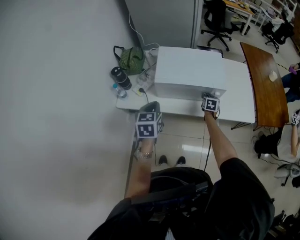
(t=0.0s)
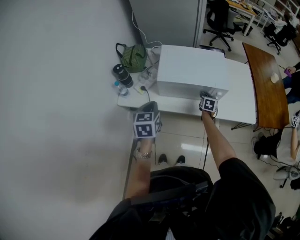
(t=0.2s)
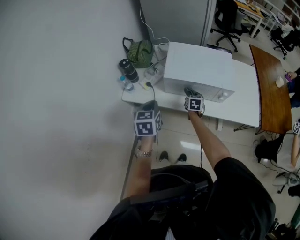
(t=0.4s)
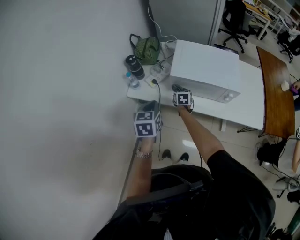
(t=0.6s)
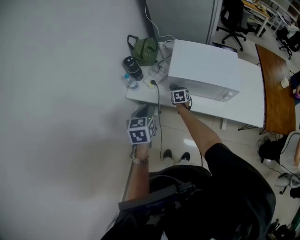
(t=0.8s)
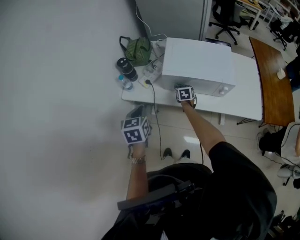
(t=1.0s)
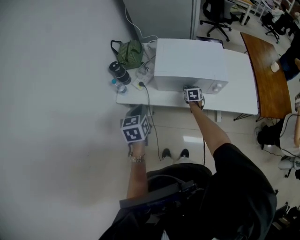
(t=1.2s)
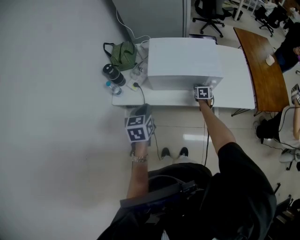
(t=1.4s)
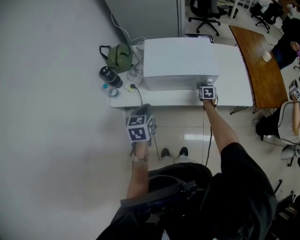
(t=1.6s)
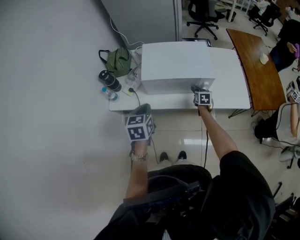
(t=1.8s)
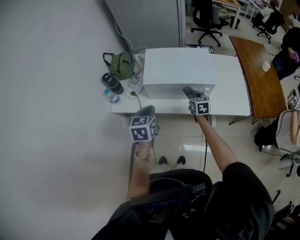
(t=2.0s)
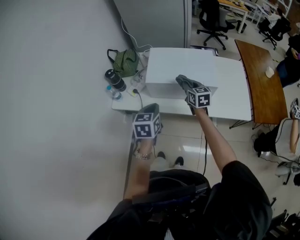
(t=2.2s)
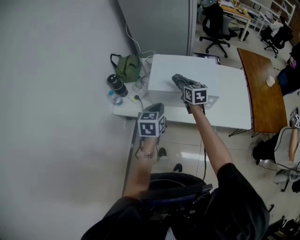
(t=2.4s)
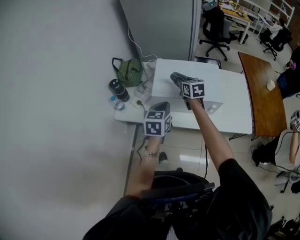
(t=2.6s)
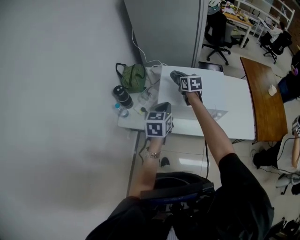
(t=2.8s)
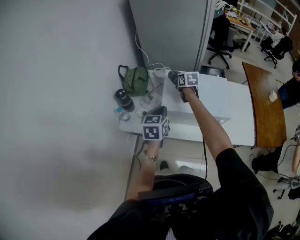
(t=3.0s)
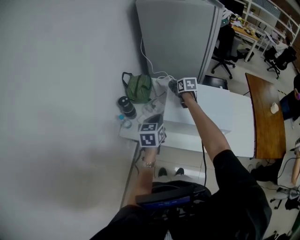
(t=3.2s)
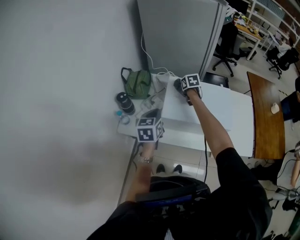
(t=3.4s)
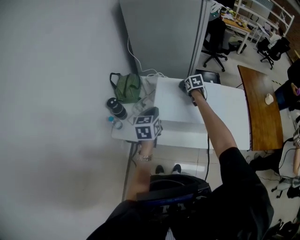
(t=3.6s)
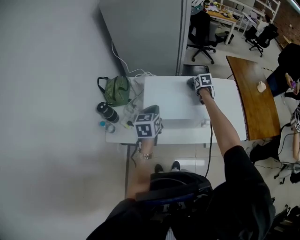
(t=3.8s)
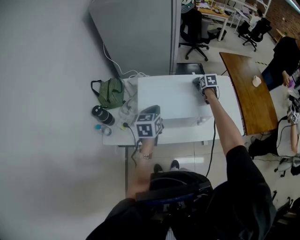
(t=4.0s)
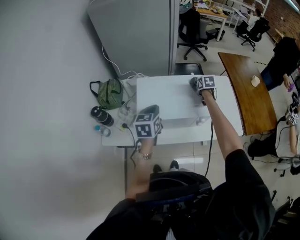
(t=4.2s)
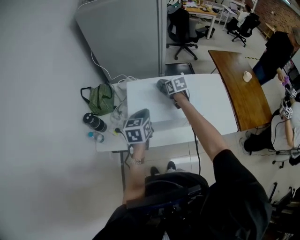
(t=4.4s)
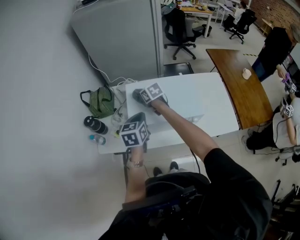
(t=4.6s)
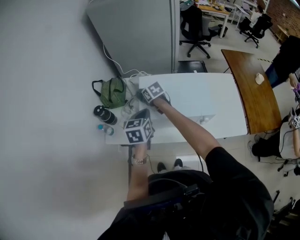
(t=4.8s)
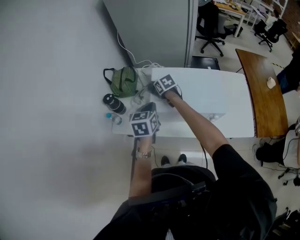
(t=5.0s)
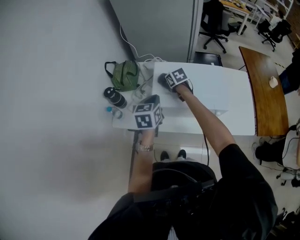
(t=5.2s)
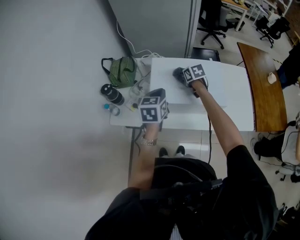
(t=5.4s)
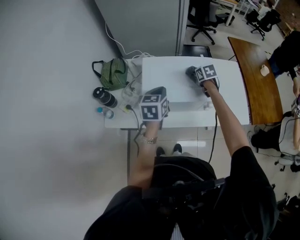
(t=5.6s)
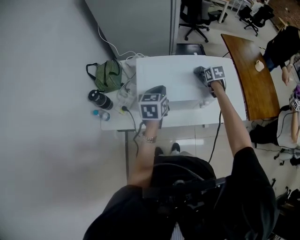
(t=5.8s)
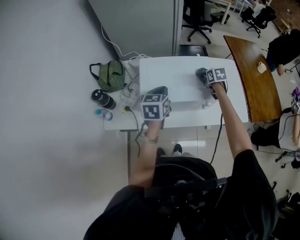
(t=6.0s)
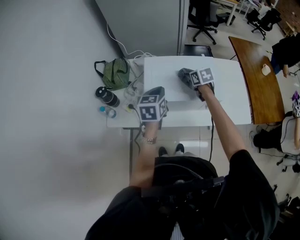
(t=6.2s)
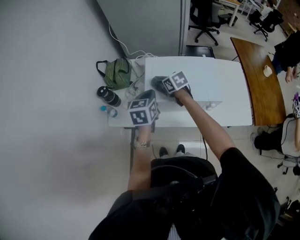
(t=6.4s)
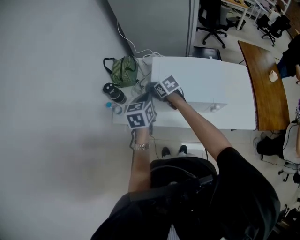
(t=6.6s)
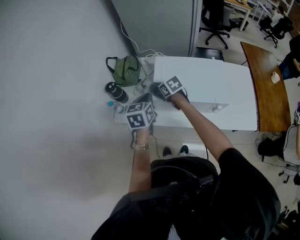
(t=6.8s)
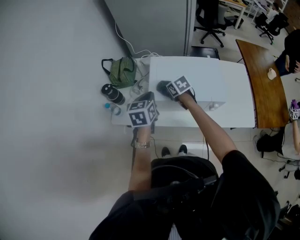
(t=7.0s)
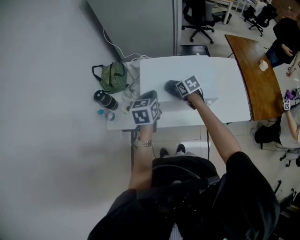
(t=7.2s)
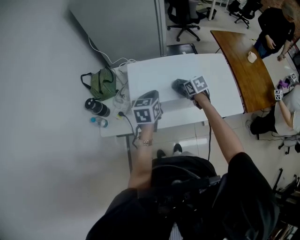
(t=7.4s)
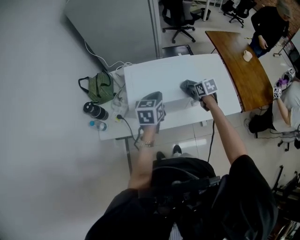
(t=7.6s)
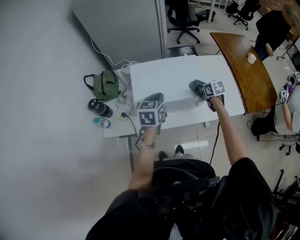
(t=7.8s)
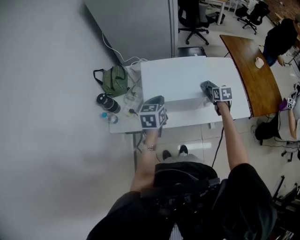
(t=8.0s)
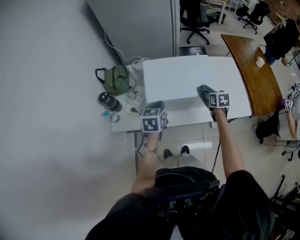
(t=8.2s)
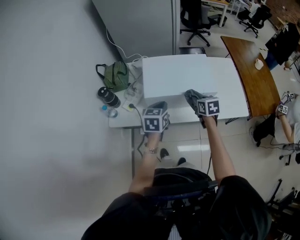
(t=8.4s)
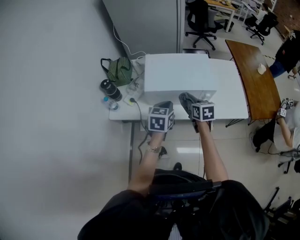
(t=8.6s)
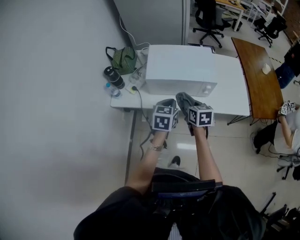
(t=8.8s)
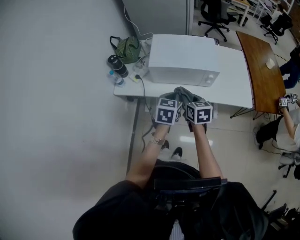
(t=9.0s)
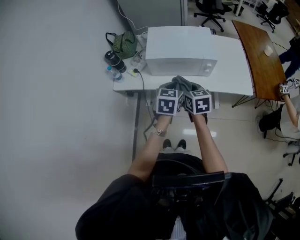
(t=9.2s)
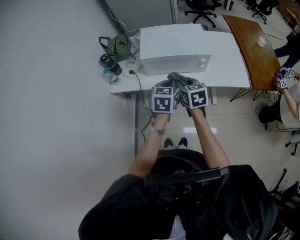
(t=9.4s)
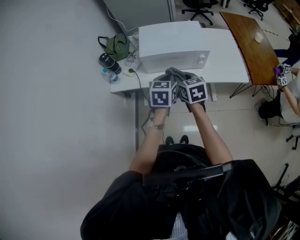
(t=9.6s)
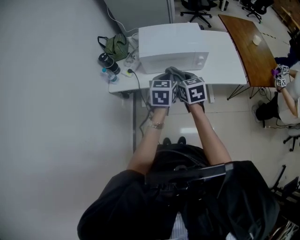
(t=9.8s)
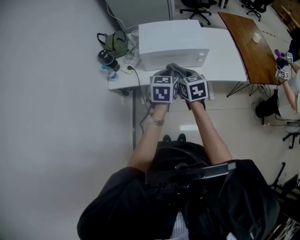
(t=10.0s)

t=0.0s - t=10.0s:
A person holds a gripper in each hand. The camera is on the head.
t=0.0s - t=1.4s: The left gripper travels to the left and back again, roughly 10 cm each way; the right gripper moves some 30 cm to the left and comes back.
t=1.4s - t=2.8s: The right gripper heads upward, to the left and forward, covering approximately 35 cm, and turns by approximately 30 degrees, while the left gripper moves forward, to the right and upward, approximately 15 cm.
t=2.8s - t=4.2s: The right gripper moves to the right, roughly 30 cm, and swivels roughly 30 degrees. The left gripper shifts about 10 cm forward and to the right.
t=5.8s - t=7.2s: The right gripper turns by some 20 degrees.
t=7.2s - t=8.6s: The right gripper heads backward, covering approximately 15 cm, reaches approximately 20 cm to the right, then returns, and swivels approximately 20 degrees; the left gripper shifts roughly 15 cm backward and to the right.
t=8.6s - t=10.0s: The left gripper goes roughly 10 cm backward. Meanwhile the right gripper is displaced backward, upward and to the left by some 15 cm.

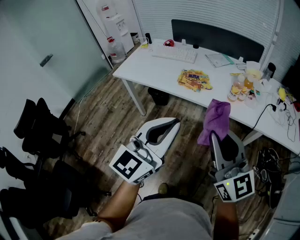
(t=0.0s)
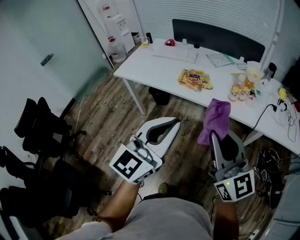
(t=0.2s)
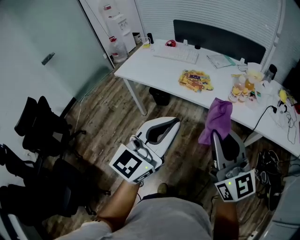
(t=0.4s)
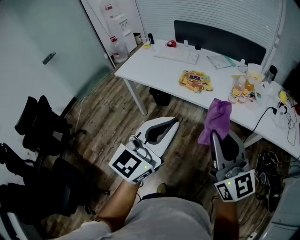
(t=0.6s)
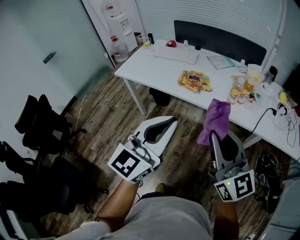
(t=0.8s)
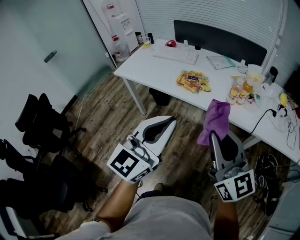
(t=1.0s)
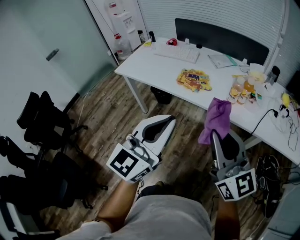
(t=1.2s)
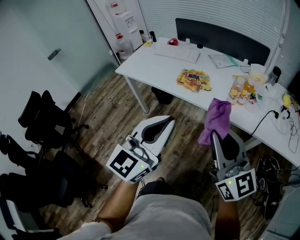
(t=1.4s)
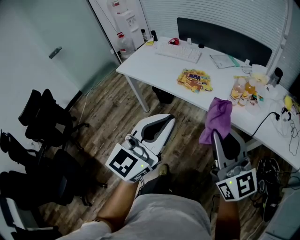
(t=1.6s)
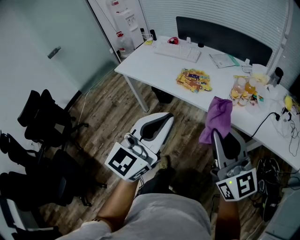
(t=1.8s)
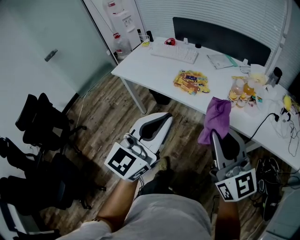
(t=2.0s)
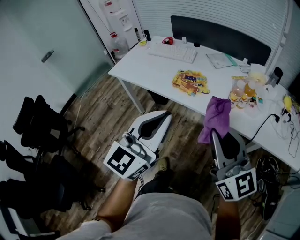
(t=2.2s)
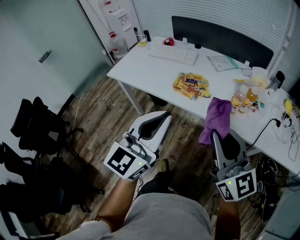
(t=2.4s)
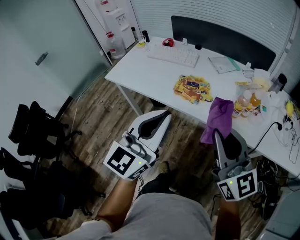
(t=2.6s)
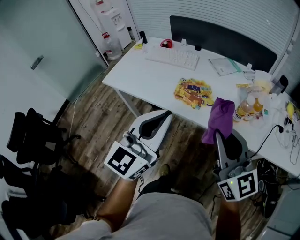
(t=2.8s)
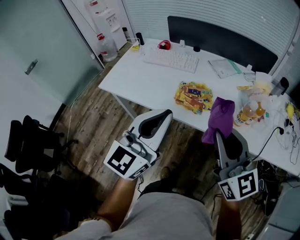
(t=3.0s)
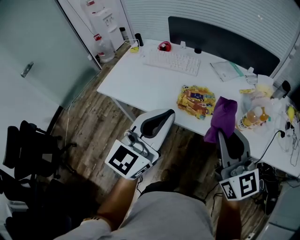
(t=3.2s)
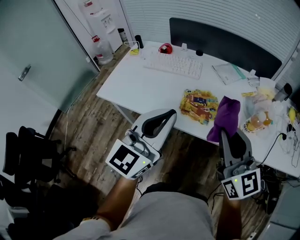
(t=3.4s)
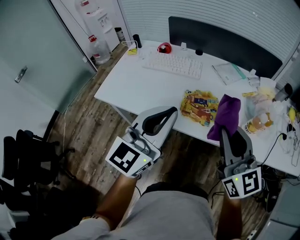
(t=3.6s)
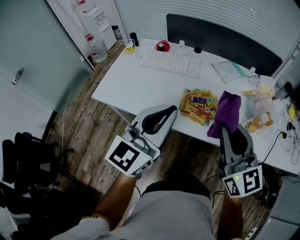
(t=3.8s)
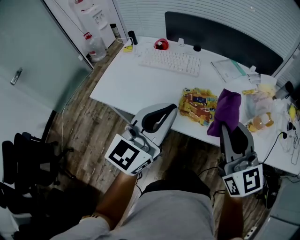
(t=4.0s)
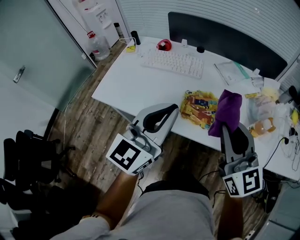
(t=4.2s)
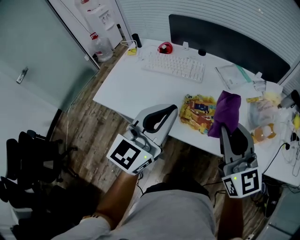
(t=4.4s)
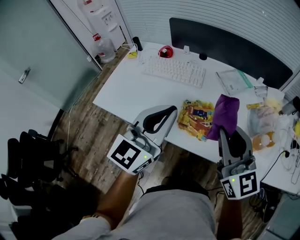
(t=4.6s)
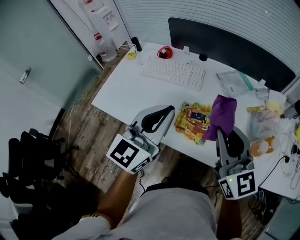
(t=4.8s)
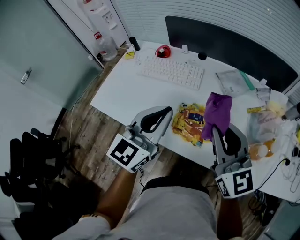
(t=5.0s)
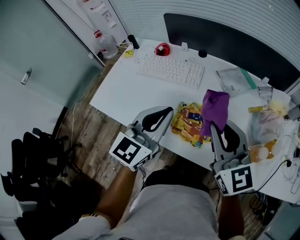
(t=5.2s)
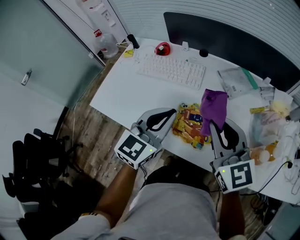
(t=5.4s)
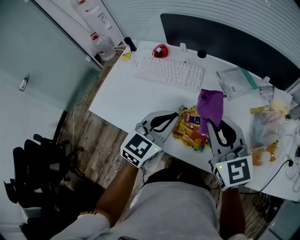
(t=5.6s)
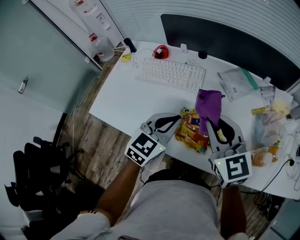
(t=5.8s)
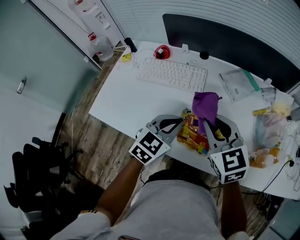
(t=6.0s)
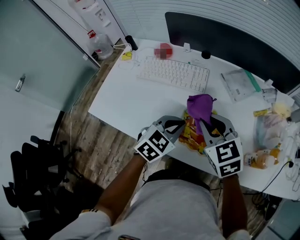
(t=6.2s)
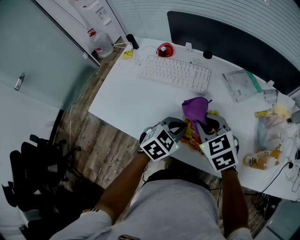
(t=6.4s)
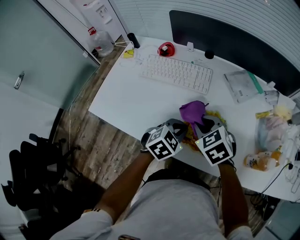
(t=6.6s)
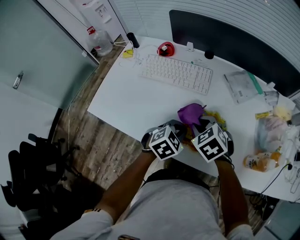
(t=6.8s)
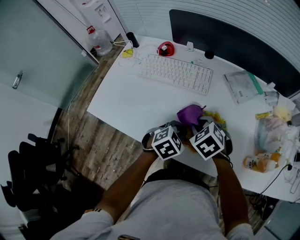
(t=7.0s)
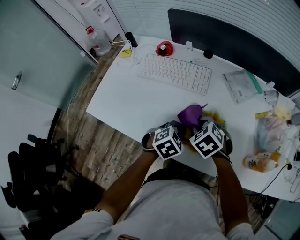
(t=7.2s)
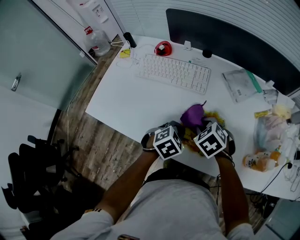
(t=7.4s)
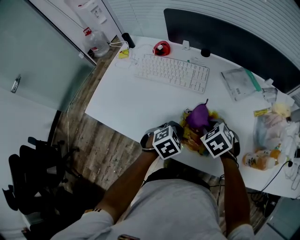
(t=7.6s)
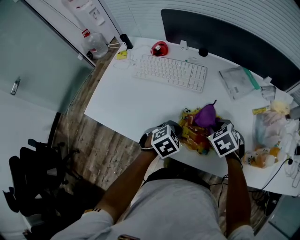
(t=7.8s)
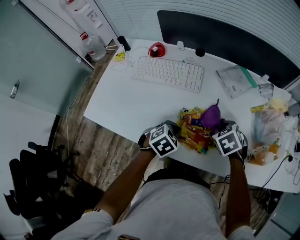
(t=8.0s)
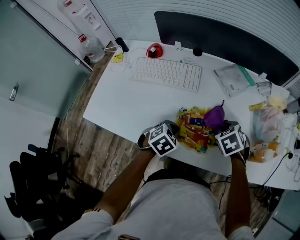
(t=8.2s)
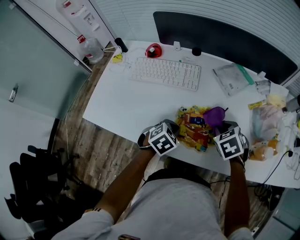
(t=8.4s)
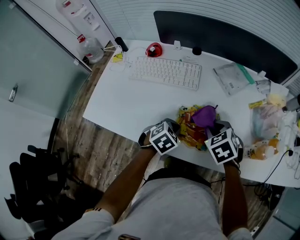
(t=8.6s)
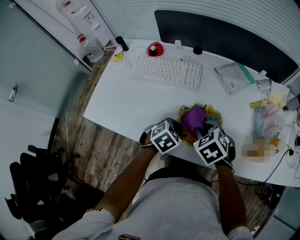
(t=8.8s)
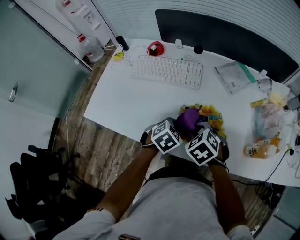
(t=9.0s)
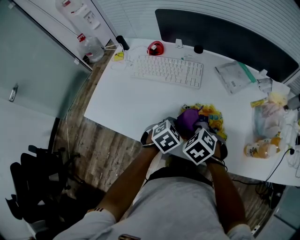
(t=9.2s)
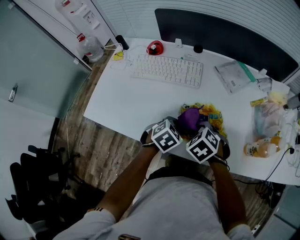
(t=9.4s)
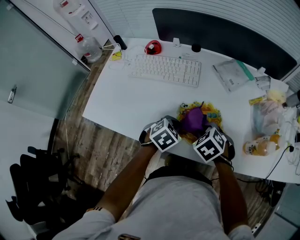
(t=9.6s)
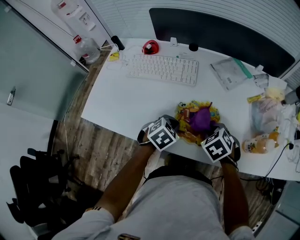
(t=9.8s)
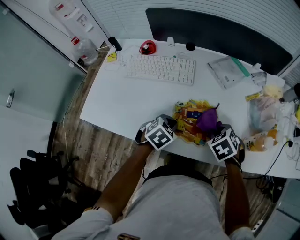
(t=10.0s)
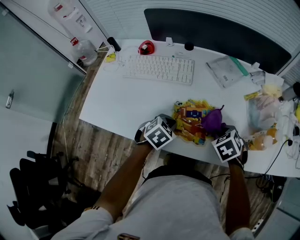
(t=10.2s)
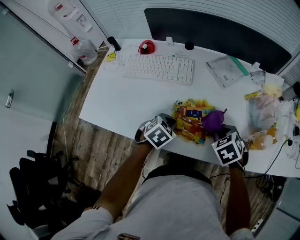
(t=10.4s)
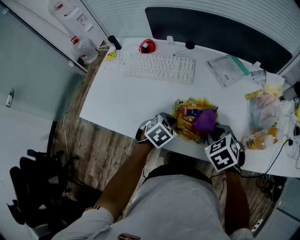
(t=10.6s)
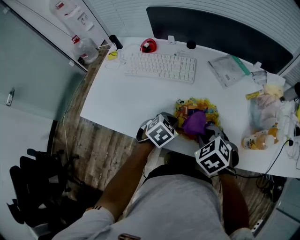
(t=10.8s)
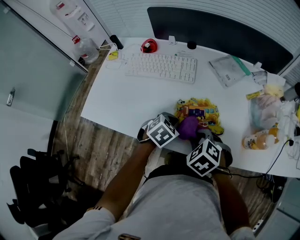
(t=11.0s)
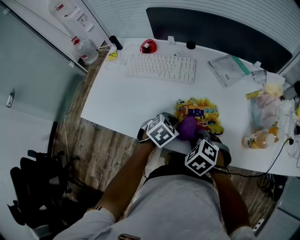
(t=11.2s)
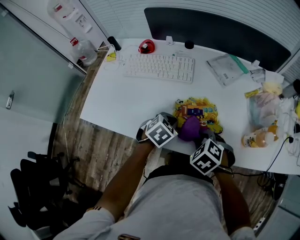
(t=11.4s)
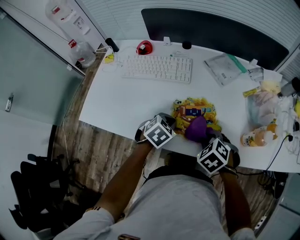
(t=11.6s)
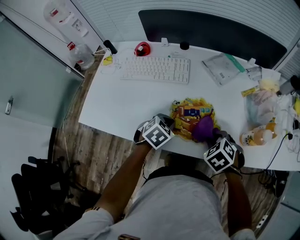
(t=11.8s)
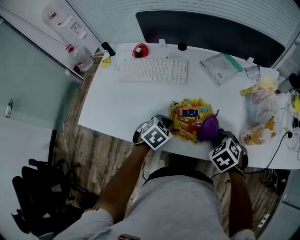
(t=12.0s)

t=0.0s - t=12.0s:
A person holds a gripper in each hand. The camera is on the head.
t=0.0s - t=1.6s: The right gripper travels to the right by about 5 cm.
t=1.6s - t=3.0s: The grippers both shift forward by roughly 20 cm.
t=3.0s - t=4.4s: Both grippers travel together forward, roughly 15 cm.
t=4.4s - t=6.0s: The right gripper is displaced forward and downward by some 15 cm, and turns by about 20 degrees; the left gripper goes approximately 20 cm downward and forward, and points its fingers approximately 40 degrees further downward.
t=6.0s - t=7.6s: Both grippers move downward, some 15 cm. The left gripper tips its fingers downward by roughly 30 degrees. Meanwhile the right gripper tips its fingers downward by approximately 40 degrees.
t=7.6s - t=9.0s: The right gripper travels backward by roughly 5 cm, and moves approximately 10 cm to the right and comes back.
t=9.0s - t=10.4s: The right gripper goes approximately 15 cm to the right.
t=10.4s - t=12.0s: The right gripper goes to the left and returns, some 10 cm each way.

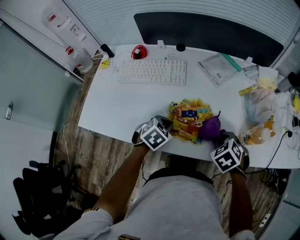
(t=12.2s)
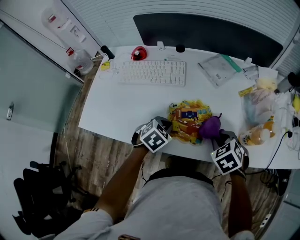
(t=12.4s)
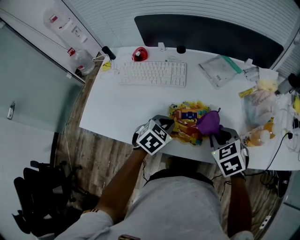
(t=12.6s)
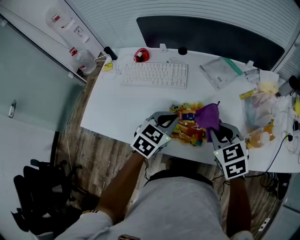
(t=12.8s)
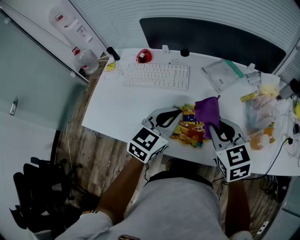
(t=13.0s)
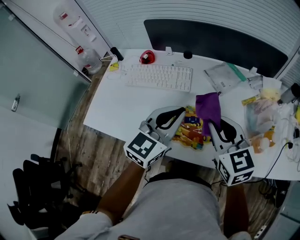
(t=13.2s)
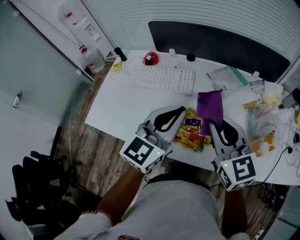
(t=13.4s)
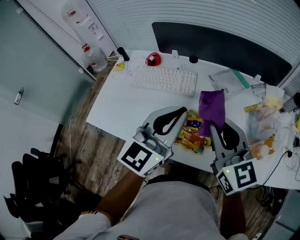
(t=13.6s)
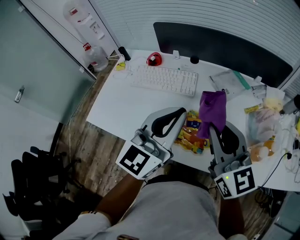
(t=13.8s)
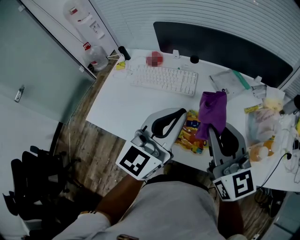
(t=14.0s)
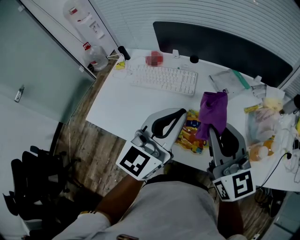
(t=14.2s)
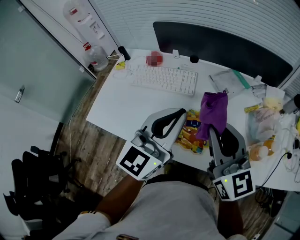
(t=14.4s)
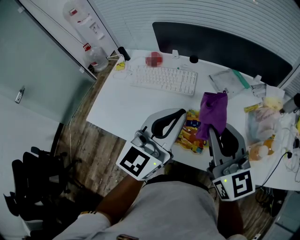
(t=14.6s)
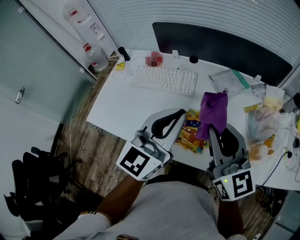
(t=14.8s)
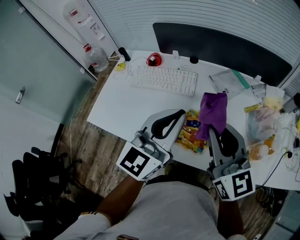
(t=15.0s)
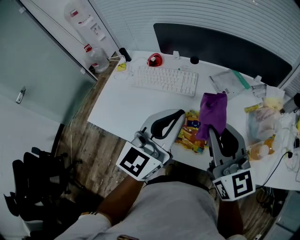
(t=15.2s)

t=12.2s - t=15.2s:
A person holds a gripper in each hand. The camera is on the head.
t=12.2s - t=13.8s: The grippers both shift upward by roughly 30 cm. The left gripper tips its fingers upward by about 70 degrees. Meanwhile the right gripper tips its fingers upward by some 70 degrees.
t=13.8s - t=15.2s: Both grippers stay put.
